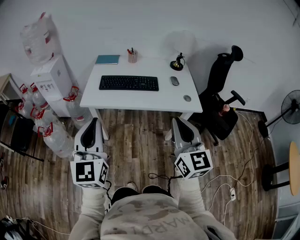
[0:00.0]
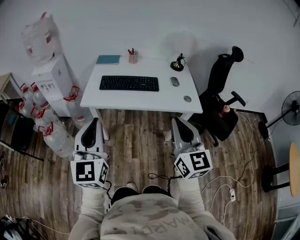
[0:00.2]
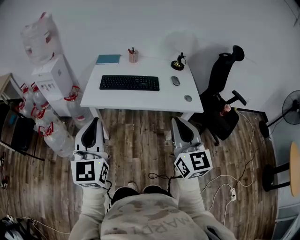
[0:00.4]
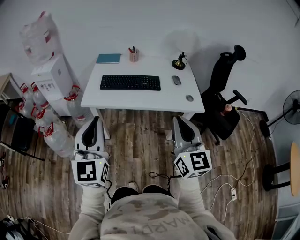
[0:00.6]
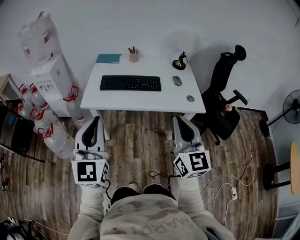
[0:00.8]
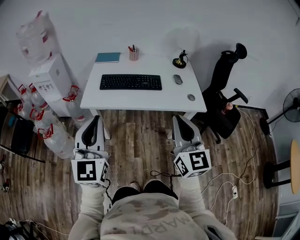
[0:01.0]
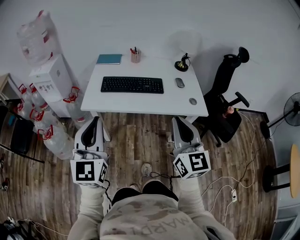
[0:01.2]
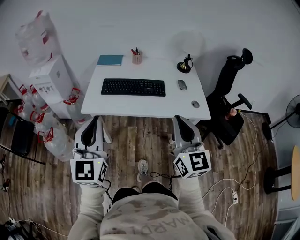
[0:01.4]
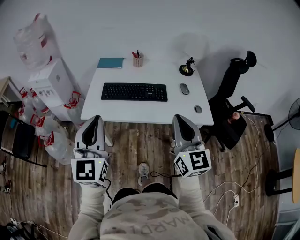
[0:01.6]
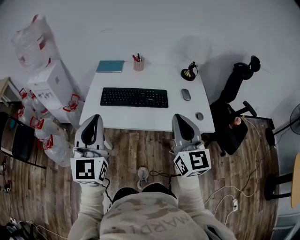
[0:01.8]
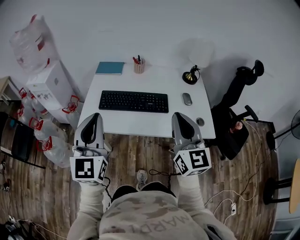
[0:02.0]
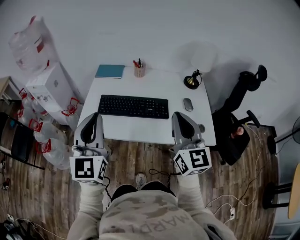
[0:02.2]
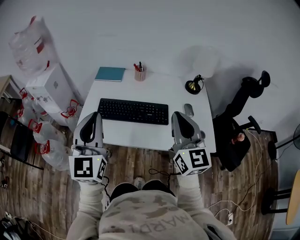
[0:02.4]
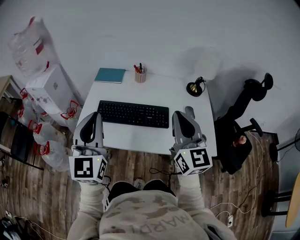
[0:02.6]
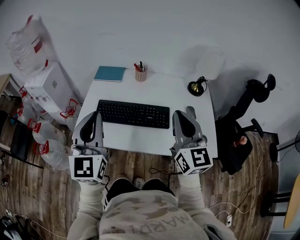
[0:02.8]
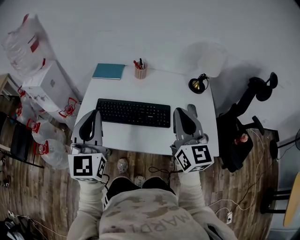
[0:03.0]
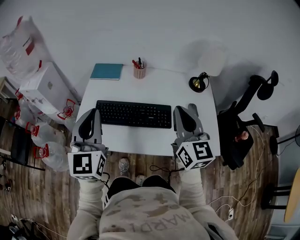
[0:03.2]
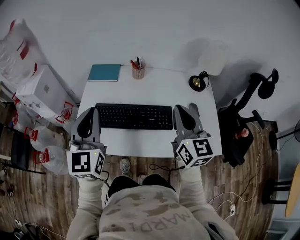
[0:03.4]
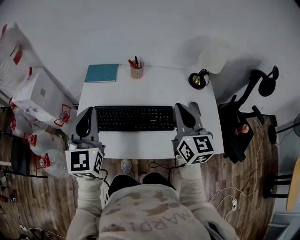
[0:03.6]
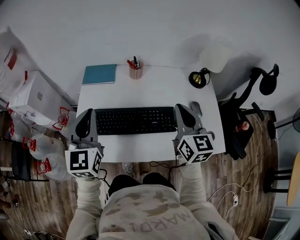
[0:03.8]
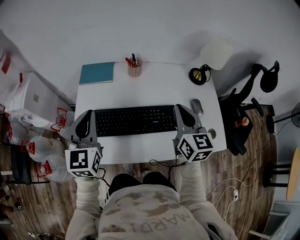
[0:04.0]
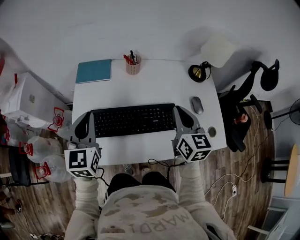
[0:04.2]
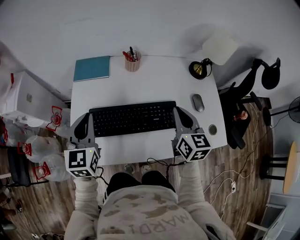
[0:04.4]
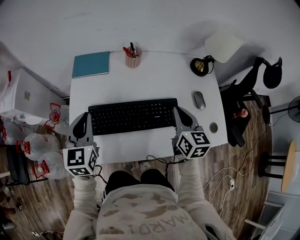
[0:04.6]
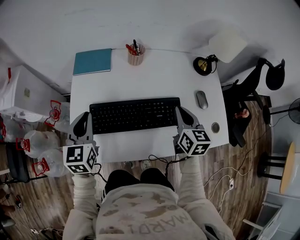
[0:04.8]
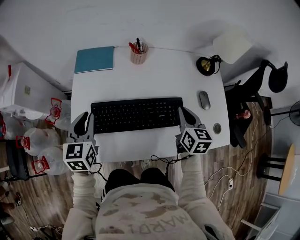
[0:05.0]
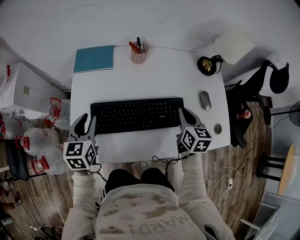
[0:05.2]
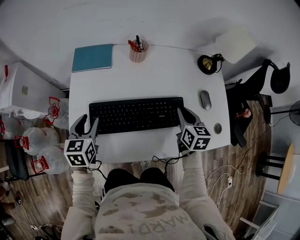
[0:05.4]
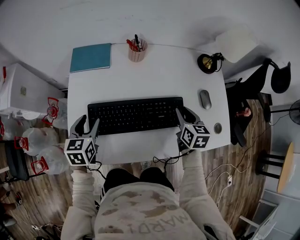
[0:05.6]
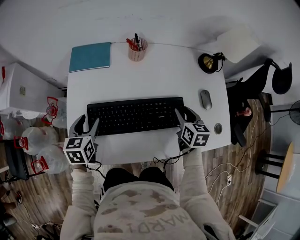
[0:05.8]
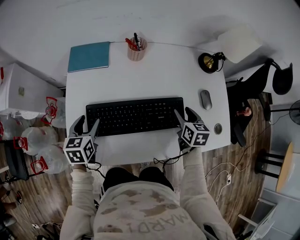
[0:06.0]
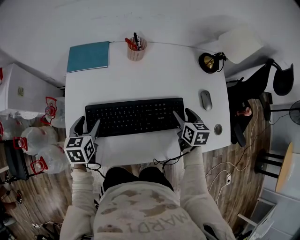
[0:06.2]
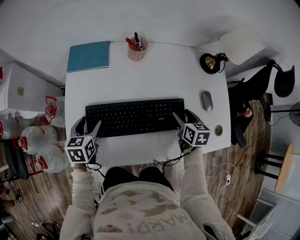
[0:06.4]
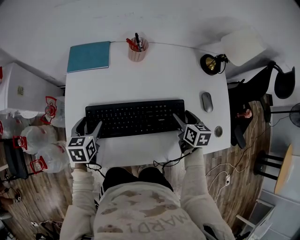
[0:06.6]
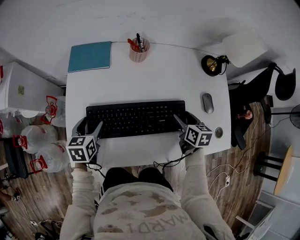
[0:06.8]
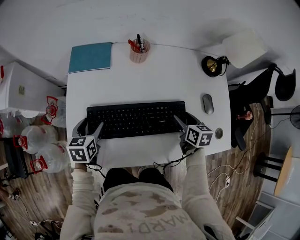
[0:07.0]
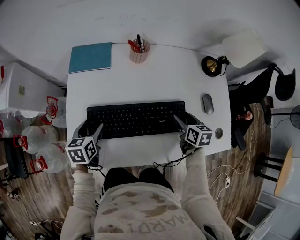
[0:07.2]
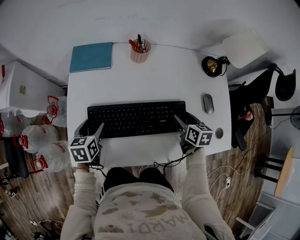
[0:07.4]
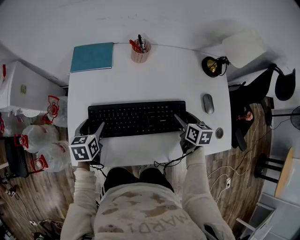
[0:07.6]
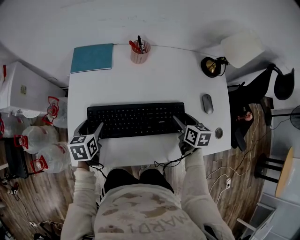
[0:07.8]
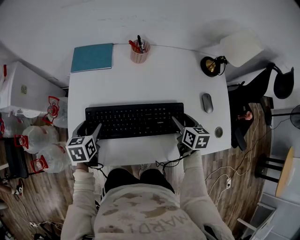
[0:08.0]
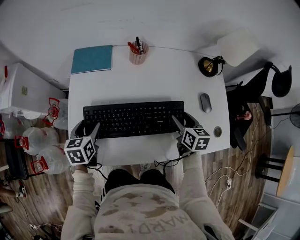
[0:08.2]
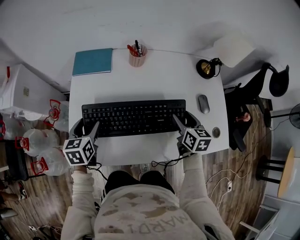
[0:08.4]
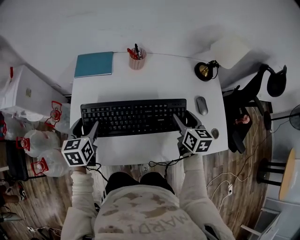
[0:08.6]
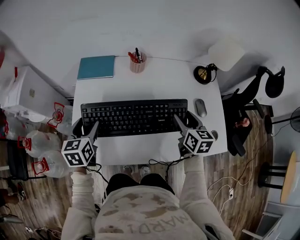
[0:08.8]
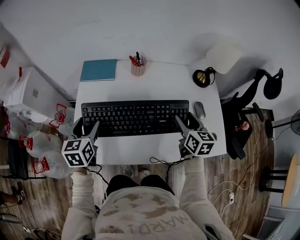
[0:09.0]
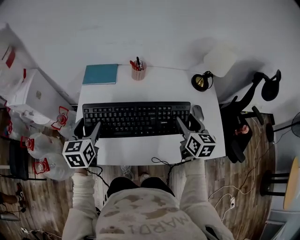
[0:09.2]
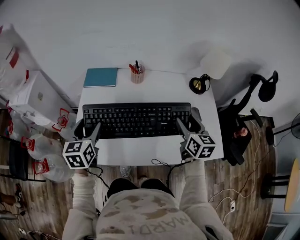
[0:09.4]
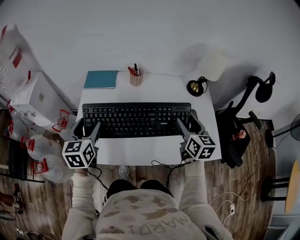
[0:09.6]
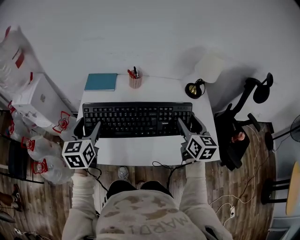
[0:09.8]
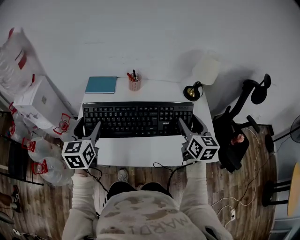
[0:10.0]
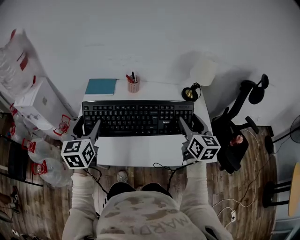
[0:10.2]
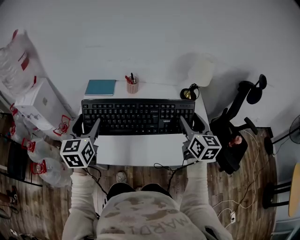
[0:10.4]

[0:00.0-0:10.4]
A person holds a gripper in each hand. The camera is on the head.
0:00.0 to 0:01.4: The two grippers go approximately 10 cm forward.
0:01.4 to 0:03.0: The two grippers go some 30 cm forward.
0:03.0 to 0:04.4: The right gripper moves downward and forward, approximately 20 cm, and changes its angle by roughly 30 degrees, while the left gripper is displaced forward, downward and to the left by roughly 25 cm, and rotates some 20 degrees.
0:04.4 to 0:06.0: The grippers both shift downward by about 15 cm. The right gripper turns by about 20 degrees, and opens. Meanwhile the left gripper turns by roughly 30 degrees, and opens its fingers.
0:06.0 to 0:07.4: The grippers move only a little.
0:07.4 to 0:09.0: The grippers both shift upward by about 15 cm. The right gripper swivels approximately 20 degrees.
0:09.0 to 0:10.4: Both grippers move upward and backward, approximately 15 cm.

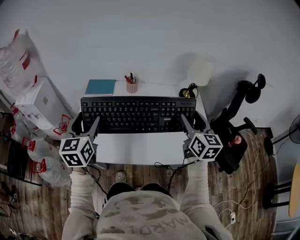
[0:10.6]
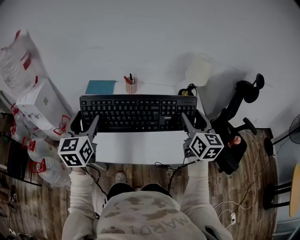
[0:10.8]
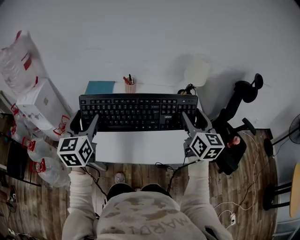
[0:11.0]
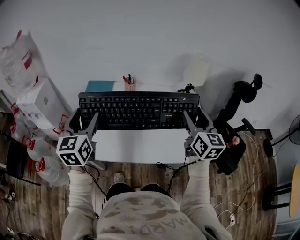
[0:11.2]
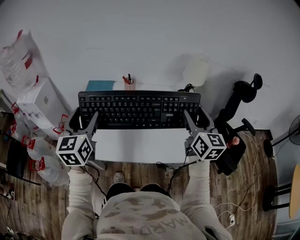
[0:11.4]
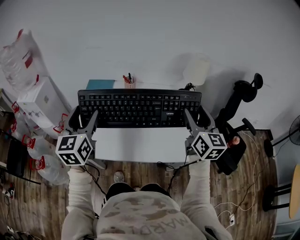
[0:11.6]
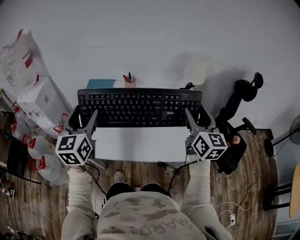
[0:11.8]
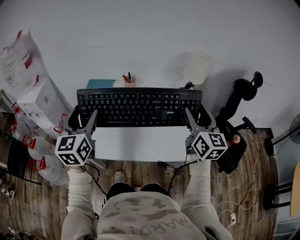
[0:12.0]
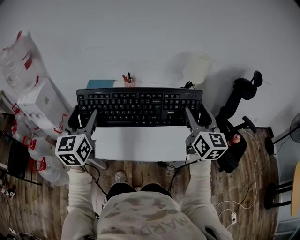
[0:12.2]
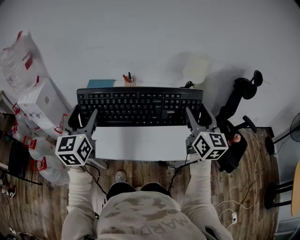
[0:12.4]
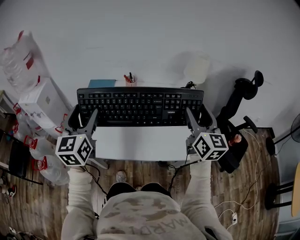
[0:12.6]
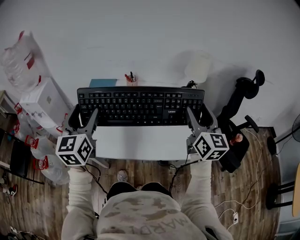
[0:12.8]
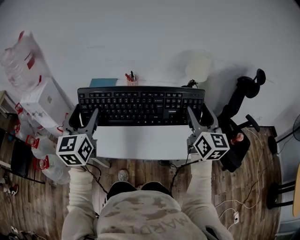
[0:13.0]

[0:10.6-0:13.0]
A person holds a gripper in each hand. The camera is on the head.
0:10.6 to 0:11.8: The left gripper moves about 5 cm. Meanwhile the right gripper travels upward by approximately 5 cm.
0:11.8 to 0:13.0: Both grippers stay put.

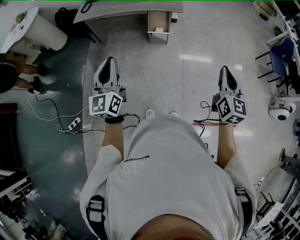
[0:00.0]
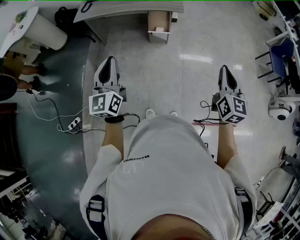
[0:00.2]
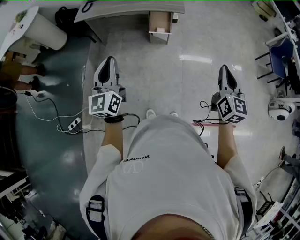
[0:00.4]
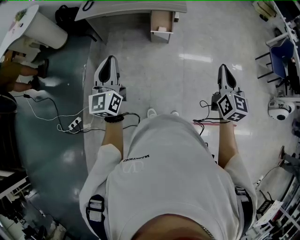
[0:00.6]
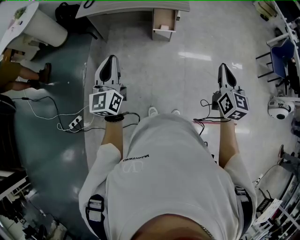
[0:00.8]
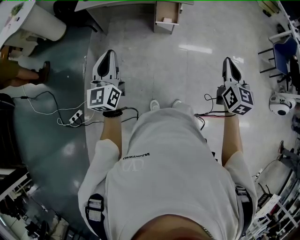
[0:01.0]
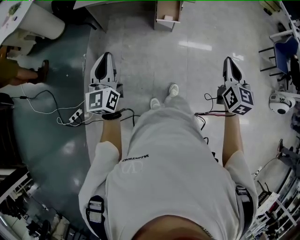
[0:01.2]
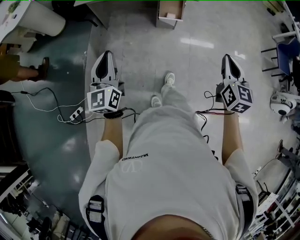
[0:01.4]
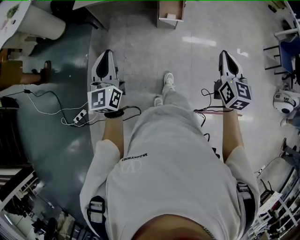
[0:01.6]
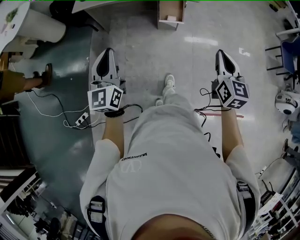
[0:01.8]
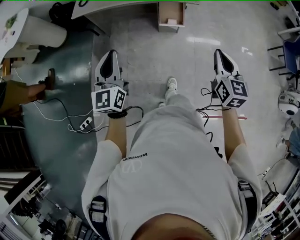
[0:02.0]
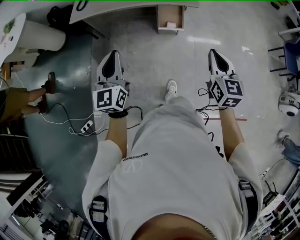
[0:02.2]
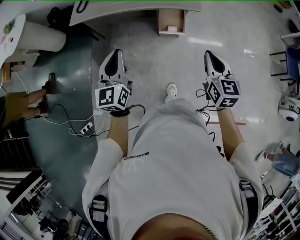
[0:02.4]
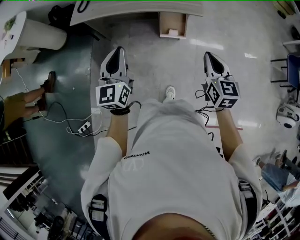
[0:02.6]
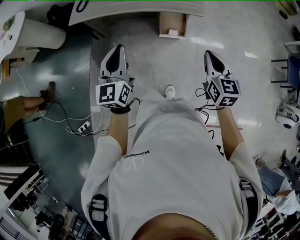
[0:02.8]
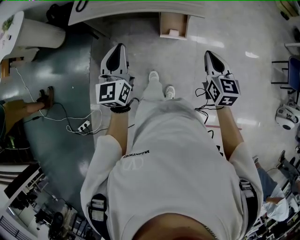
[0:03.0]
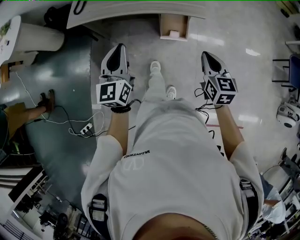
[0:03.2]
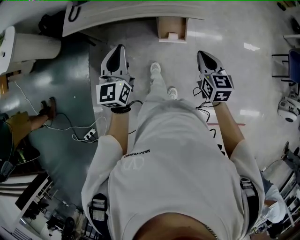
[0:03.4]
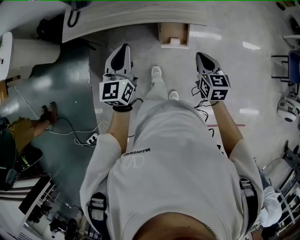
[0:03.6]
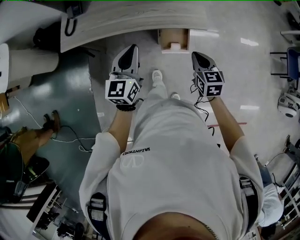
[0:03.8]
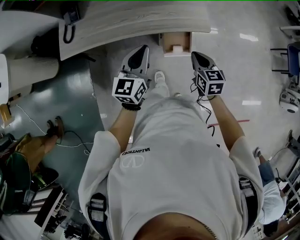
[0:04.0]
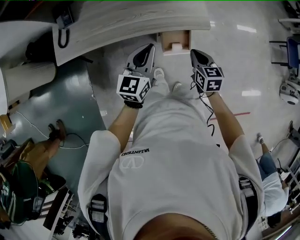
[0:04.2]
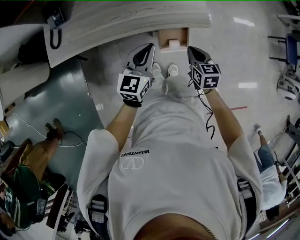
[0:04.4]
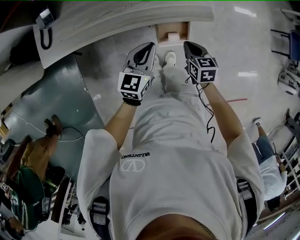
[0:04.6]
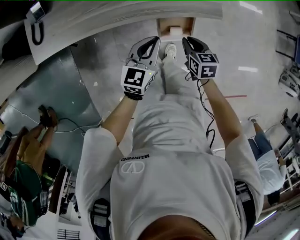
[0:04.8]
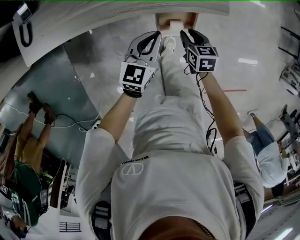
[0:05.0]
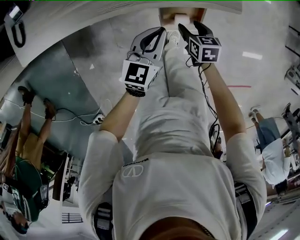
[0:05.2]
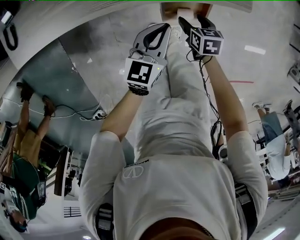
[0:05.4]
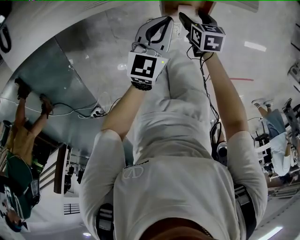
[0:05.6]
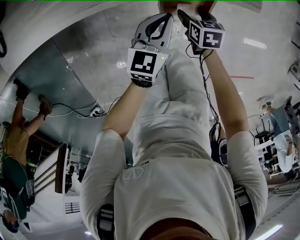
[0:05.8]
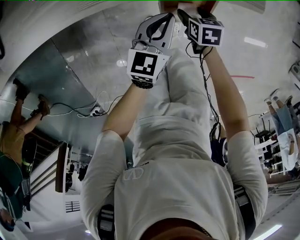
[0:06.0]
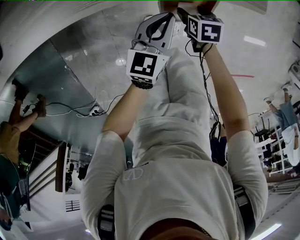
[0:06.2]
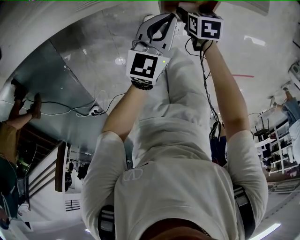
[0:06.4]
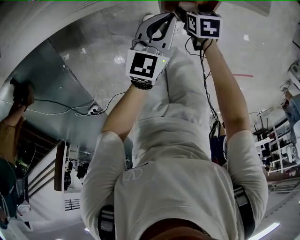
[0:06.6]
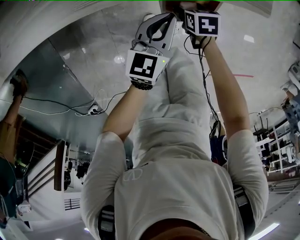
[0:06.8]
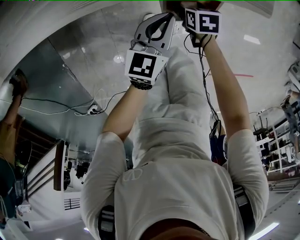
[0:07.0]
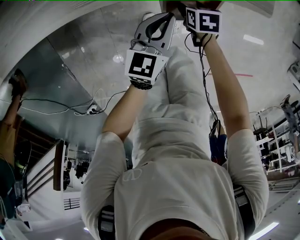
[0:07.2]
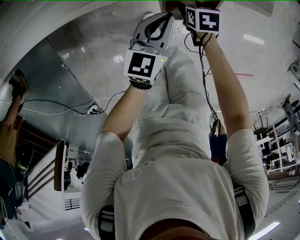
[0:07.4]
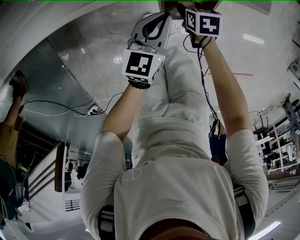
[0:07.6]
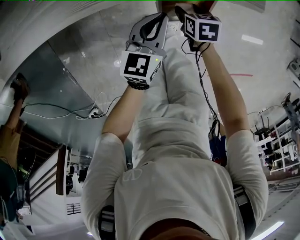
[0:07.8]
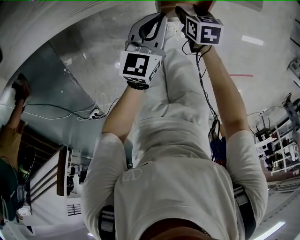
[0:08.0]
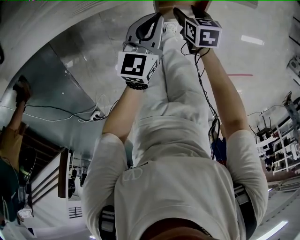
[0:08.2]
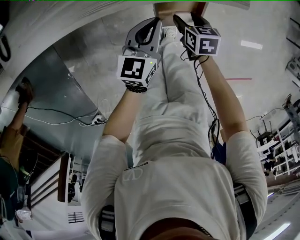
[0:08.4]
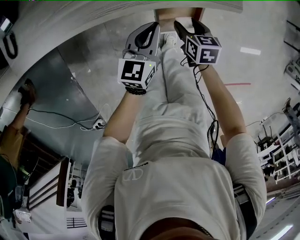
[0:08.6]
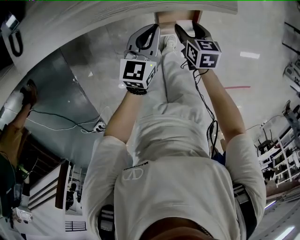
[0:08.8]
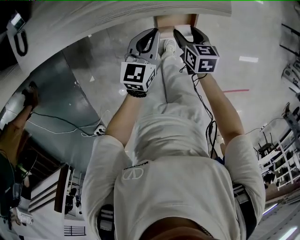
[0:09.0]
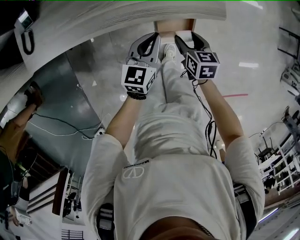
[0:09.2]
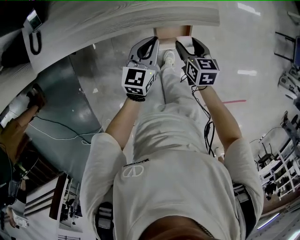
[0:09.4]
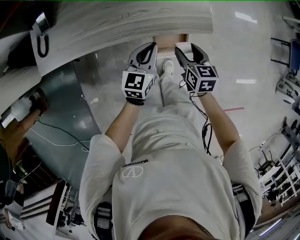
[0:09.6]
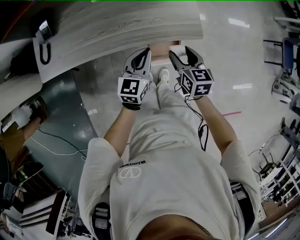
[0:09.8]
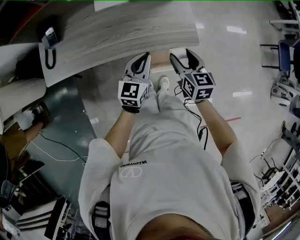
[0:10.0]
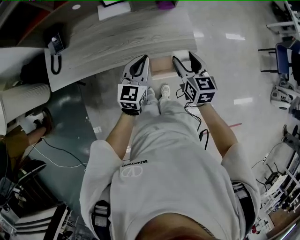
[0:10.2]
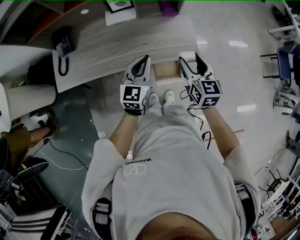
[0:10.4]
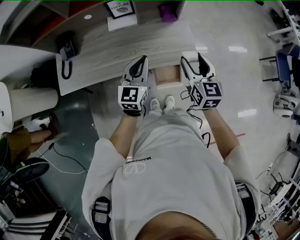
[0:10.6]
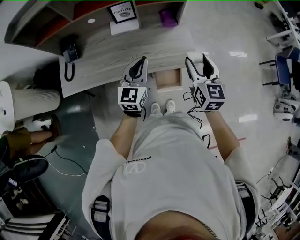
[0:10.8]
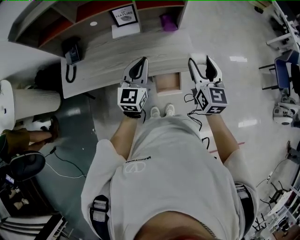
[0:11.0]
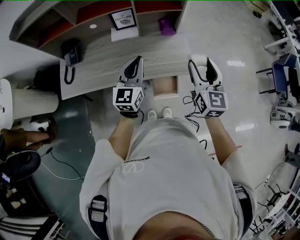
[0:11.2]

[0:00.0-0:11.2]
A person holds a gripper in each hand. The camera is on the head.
0:00.0 to 0:01.6: The right gripper travels to the left and forward by about 15 cm. Meanwhile the left gripper travels to the left, forward and downward by roughly 15 cm.
0:01.6 to 0:03.2: The grippers both shift forward by some 25 cm.
0:03.2 to 0:04.8: The right gripper heads downward and forward, covering some 35 cm, and changes its angle by about 30 degrees; the left gripper shifts some 35 cm forward and downward, and rotates some 40 degrees.
0:04.8 to 0:06.4: The two grippers go roughly 20 cm downward. The right gripper rotates approximately 20 degrees, and opens.
0:06.4 to 0:08.0: The grippers move only a little.
0:08.0 to 0:09.6: Both grippers move upward, about 25 cm. The right gripper rotates some 30 degrees.
0:09.6 to 0:11.2: Both grippers travel together upward, roughly 30 cm. The left gripper rotates roughly 20 degrees. The right gripper angles its fingers upward, by some 30 degrees.
